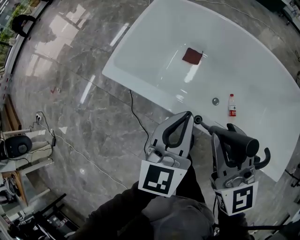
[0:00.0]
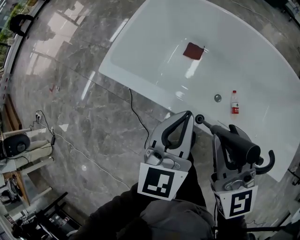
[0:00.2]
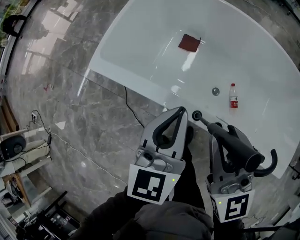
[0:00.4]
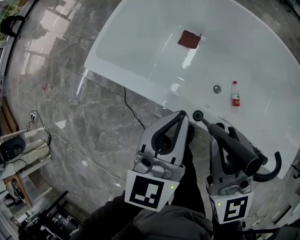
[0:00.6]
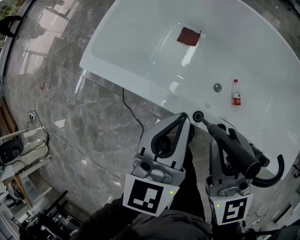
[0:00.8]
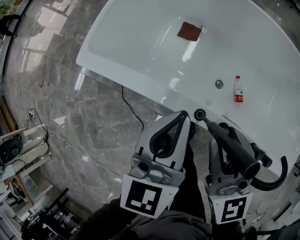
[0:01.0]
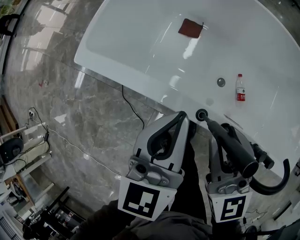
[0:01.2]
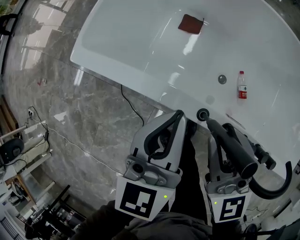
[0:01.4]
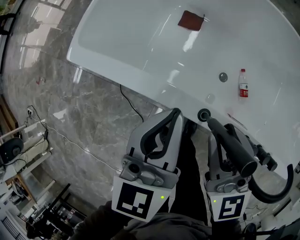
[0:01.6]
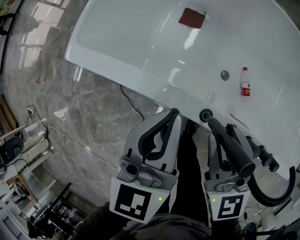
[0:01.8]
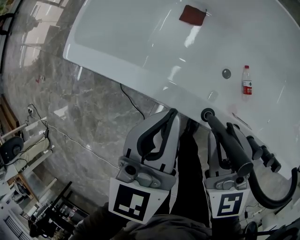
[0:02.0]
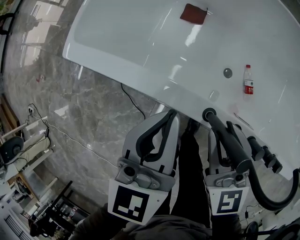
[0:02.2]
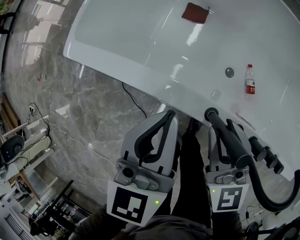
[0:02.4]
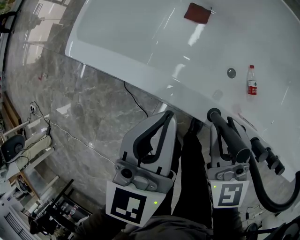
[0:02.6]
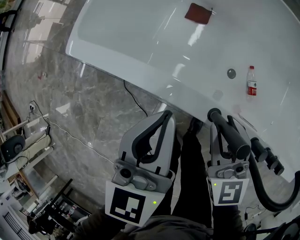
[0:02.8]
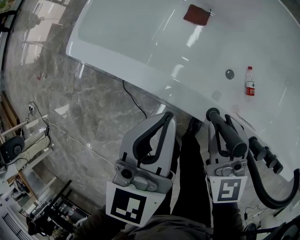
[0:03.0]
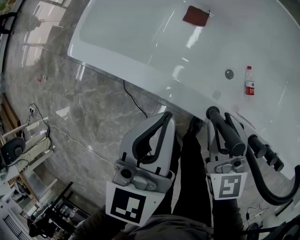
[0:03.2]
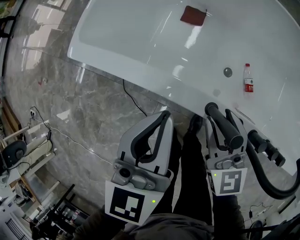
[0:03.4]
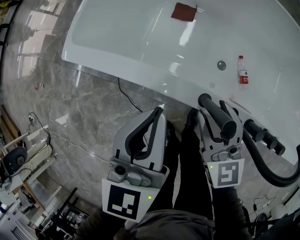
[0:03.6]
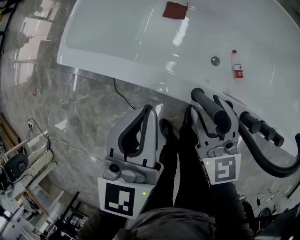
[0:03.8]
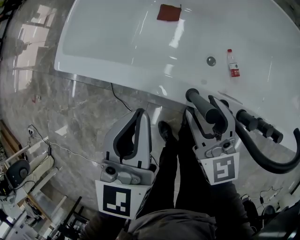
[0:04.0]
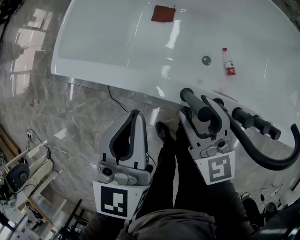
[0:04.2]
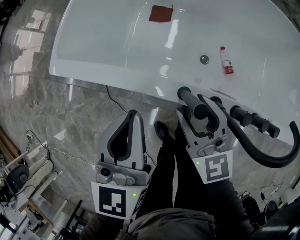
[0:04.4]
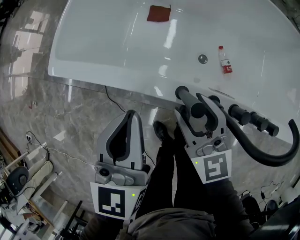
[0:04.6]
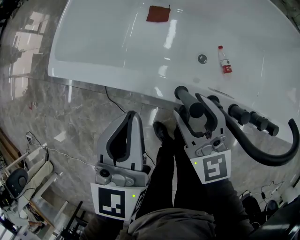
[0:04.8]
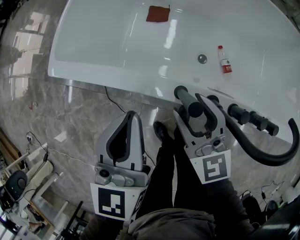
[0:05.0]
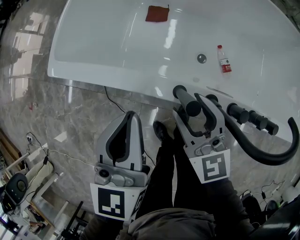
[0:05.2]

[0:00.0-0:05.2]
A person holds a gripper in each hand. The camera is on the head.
0:00.0 to 0:01.8: The grippers both shift downward by roughly 15 cm.
0:01.8 to 0:03.4: The right gripper travels downward by about 5 cm.
0:03.4 to 0:05.2: The grippers make only small movements.

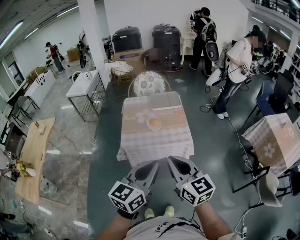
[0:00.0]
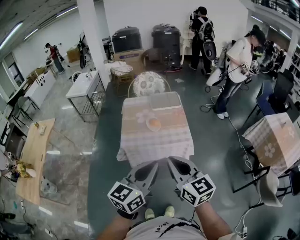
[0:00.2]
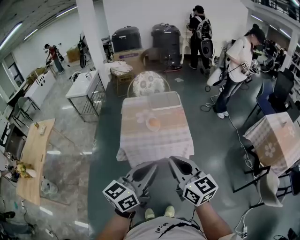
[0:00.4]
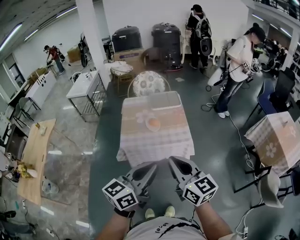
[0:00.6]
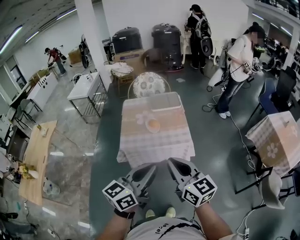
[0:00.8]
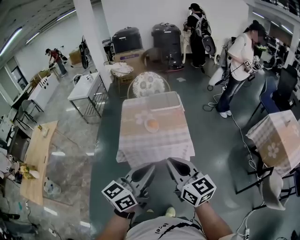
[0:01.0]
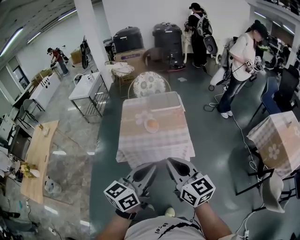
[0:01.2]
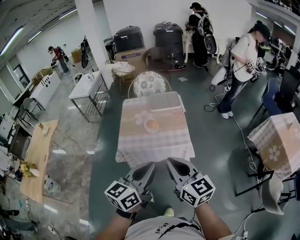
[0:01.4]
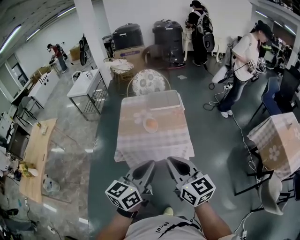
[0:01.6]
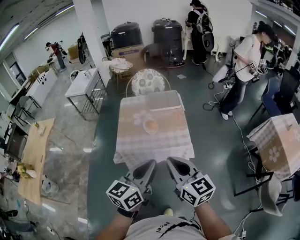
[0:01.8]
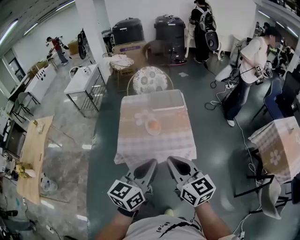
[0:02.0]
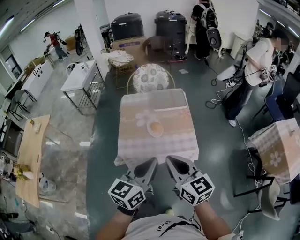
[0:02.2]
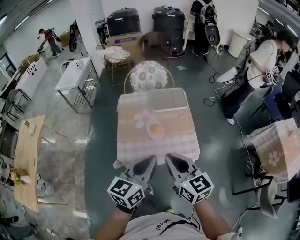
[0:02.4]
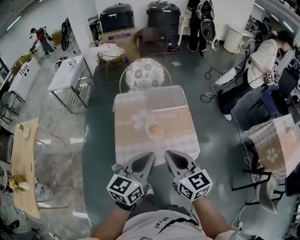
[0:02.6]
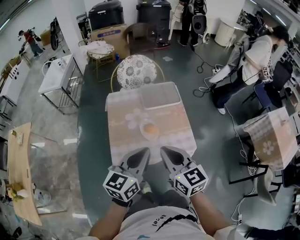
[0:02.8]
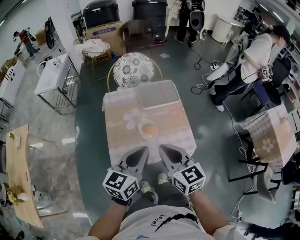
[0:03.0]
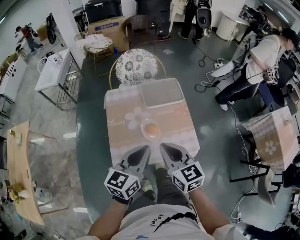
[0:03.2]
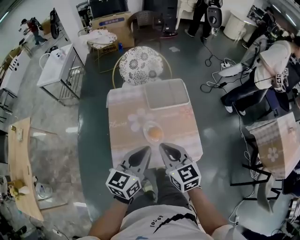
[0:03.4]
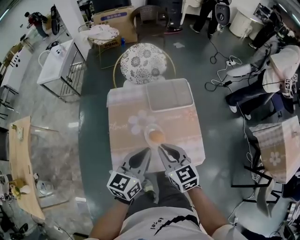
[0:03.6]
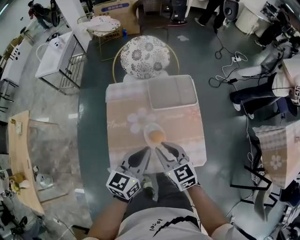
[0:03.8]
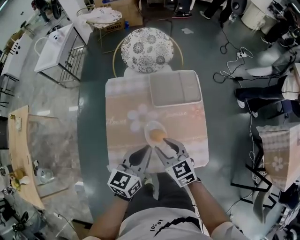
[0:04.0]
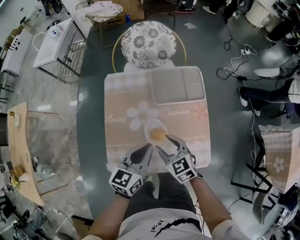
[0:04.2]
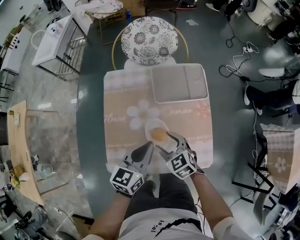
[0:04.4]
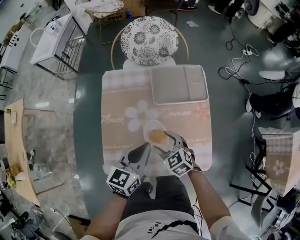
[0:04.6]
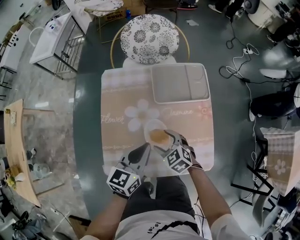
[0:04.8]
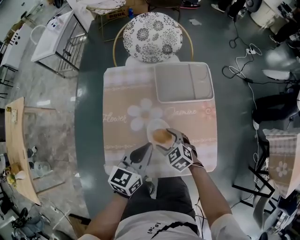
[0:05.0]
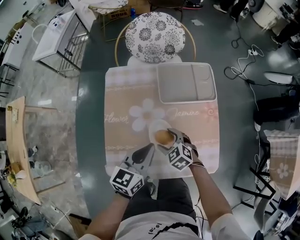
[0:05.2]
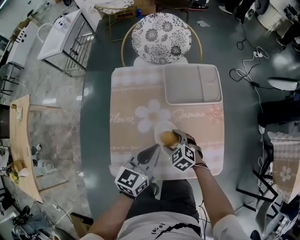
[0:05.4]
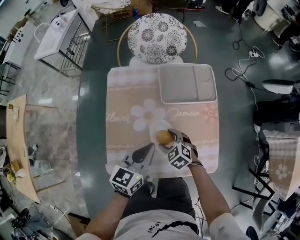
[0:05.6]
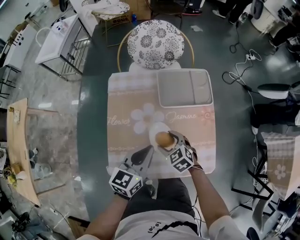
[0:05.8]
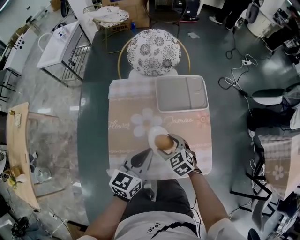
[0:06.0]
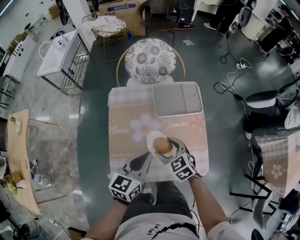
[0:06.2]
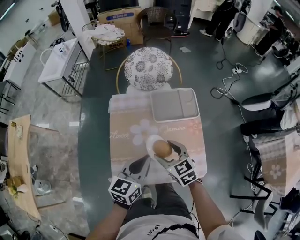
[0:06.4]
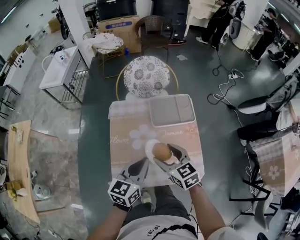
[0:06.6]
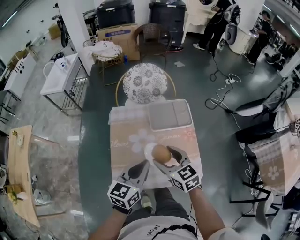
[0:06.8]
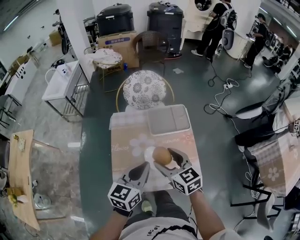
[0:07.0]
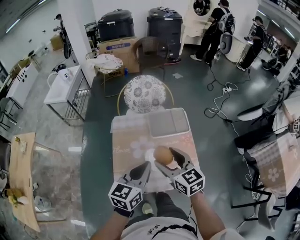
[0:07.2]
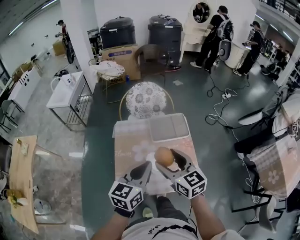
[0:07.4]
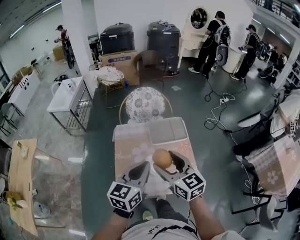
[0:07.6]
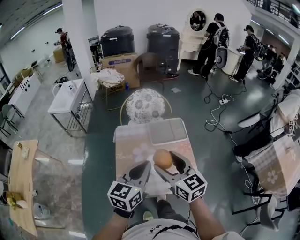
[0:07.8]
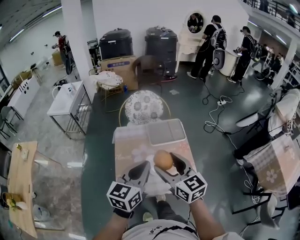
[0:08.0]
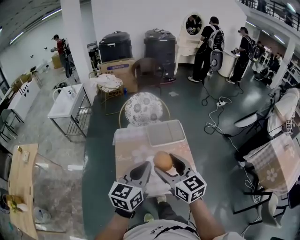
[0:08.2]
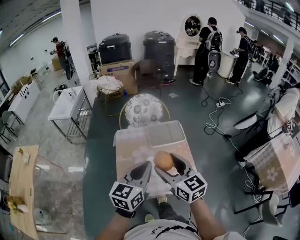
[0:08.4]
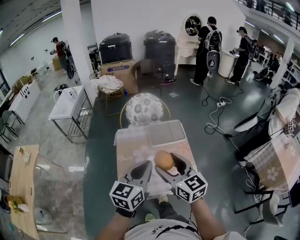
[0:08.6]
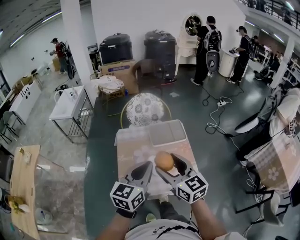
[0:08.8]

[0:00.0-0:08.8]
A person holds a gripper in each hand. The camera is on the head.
0:00.0 to 0:01.4: The left gripper moves approximately 5 cm. The right gripper shifts about 5 cm to the right.
0:01.4 to 0:03.0: Both grippers travel together forward and to the left, approximately 30 cm.
0:03.0 to 0:04.4: Both grippers move downward and forward, some 30 cm. The right gripper changes its angle by approximately 40 degrees, and opens up.
0:04.4 to 0:05.8: The right gripper heads downward, covering some 5 cm.
0:05.8 to 0:07.4: The left gripper is displaced upward by roughly 20 cm. Meanwhile the right gripper moves upward, some 35 cm, and points its fingers roughly 40 degrees further upward.
0:07.4 to 0:08.8: The left gripper ends up about 5 cm from where it was; the right gripper shifts some 5 cm backward.

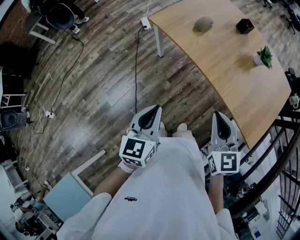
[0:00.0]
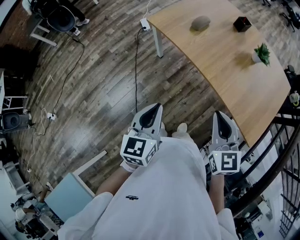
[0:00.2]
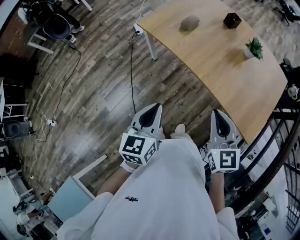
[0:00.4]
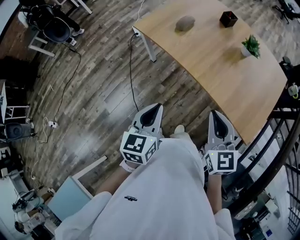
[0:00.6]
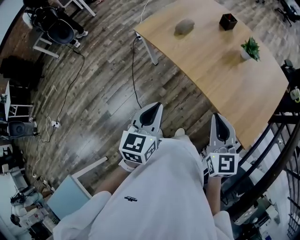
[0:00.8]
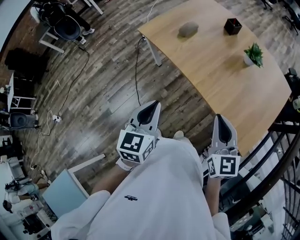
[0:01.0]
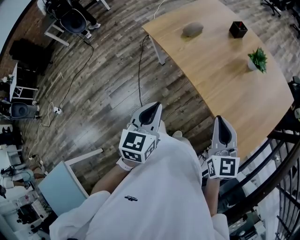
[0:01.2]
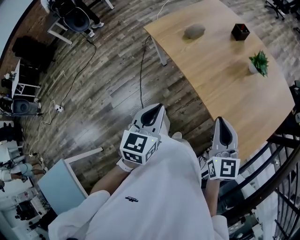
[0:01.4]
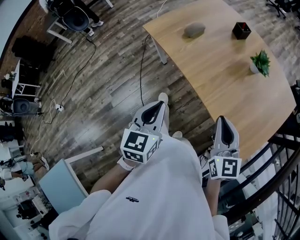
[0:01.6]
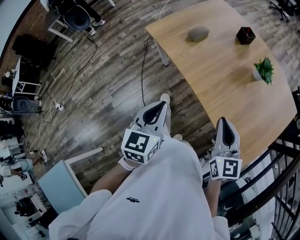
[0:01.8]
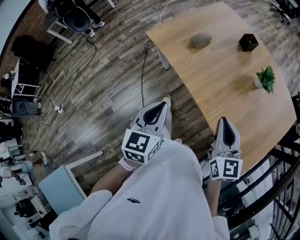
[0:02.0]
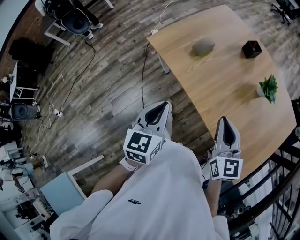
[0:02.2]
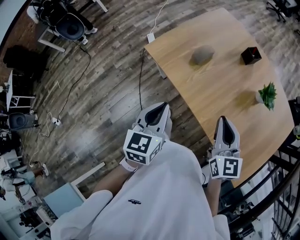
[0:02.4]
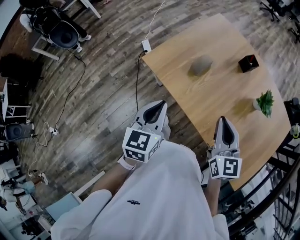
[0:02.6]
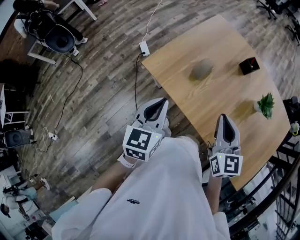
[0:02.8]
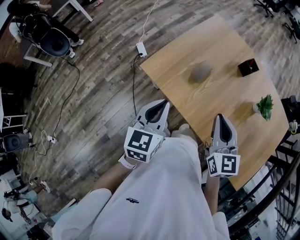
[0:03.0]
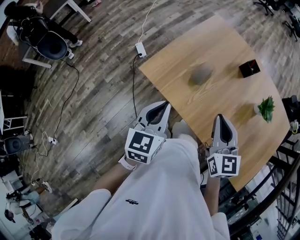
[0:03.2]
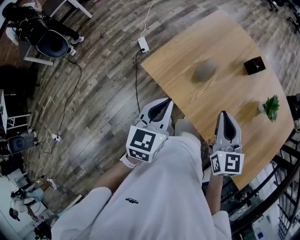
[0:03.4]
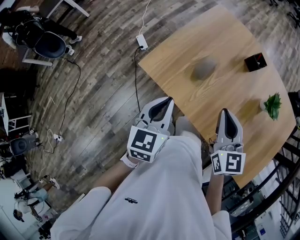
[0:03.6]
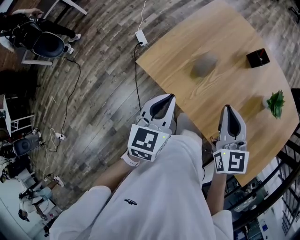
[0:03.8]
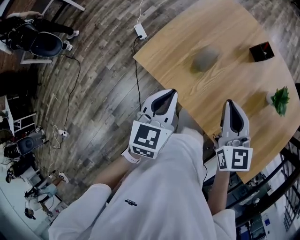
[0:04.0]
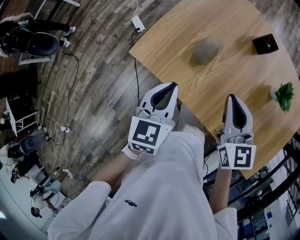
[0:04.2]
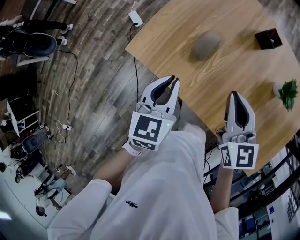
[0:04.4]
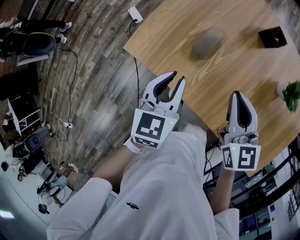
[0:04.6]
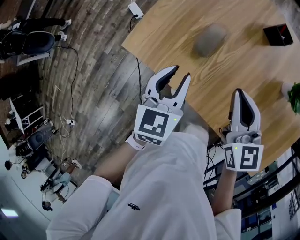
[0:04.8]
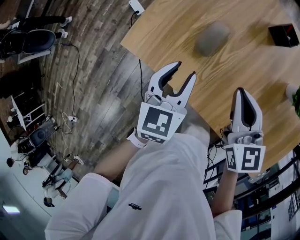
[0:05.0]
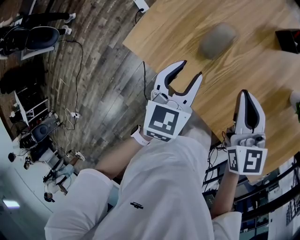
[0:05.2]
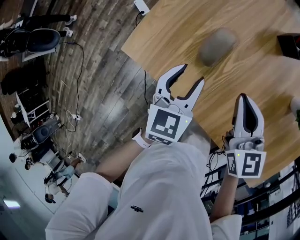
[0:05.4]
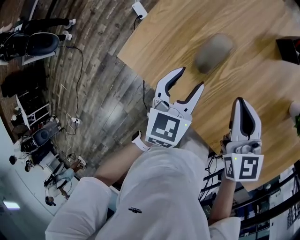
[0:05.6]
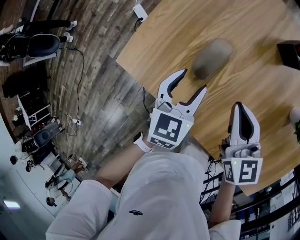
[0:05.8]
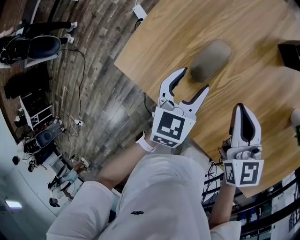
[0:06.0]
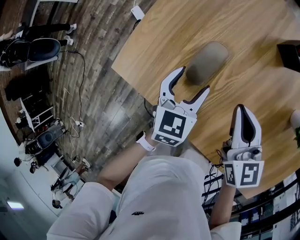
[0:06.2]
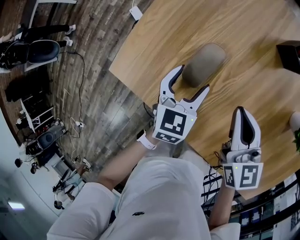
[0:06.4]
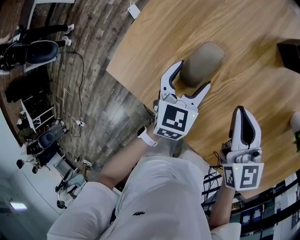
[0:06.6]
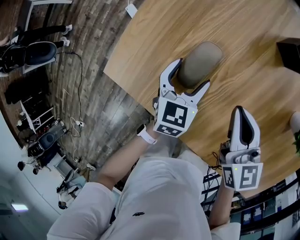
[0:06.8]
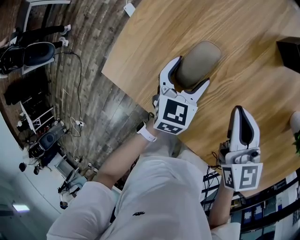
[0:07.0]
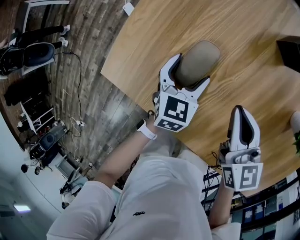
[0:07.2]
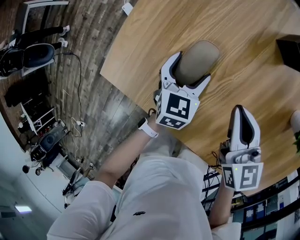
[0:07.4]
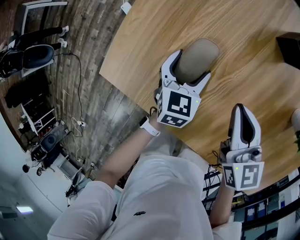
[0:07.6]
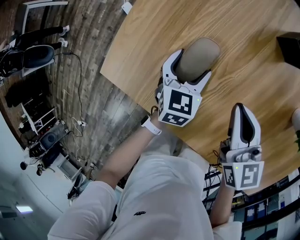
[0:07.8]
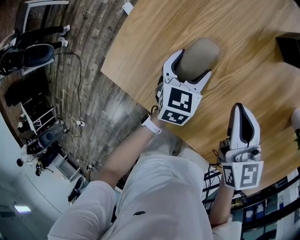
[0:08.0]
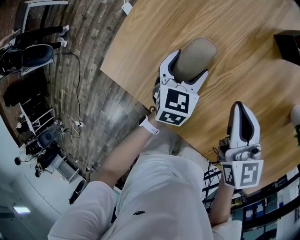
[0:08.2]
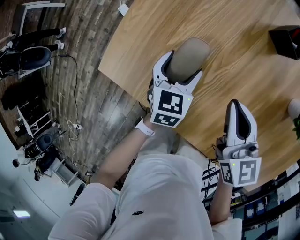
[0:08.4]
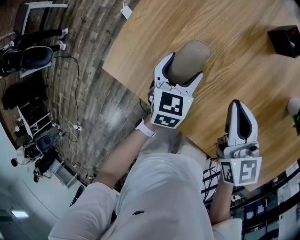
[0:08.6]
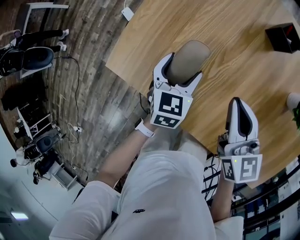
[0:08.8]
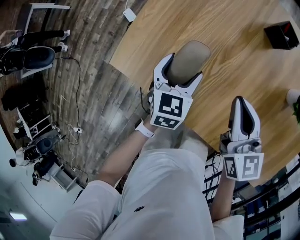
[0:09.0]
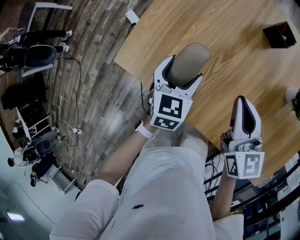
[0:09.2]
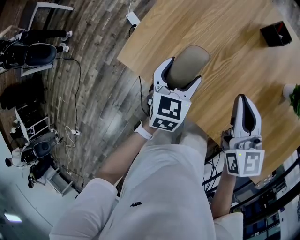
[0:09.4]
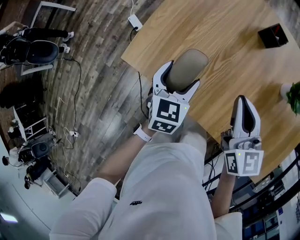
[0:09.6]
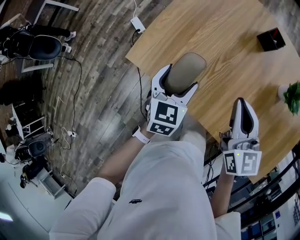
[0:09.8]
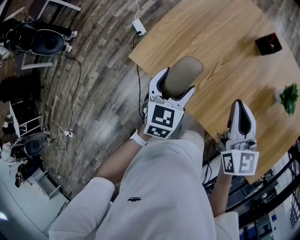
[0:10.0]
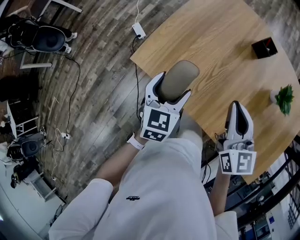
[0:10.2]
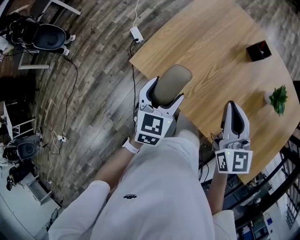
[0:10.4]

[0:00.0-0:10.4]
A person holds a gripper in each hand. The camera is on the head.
0:00.0 to 0:01.4: Both grippers move to the right, roughly 20 cm.
0:01.4 to 0:03.0: The left gripper heads forward, covering some 35 cm; the right gripper moves forward and to the left, approximately 35 cm.
0:03.0 to 0:04.4: The right gripper goes about 15 cm forward and downward, while the left gripper moves forward, downward and to the right, approximately 15 cm.
0:04.4 to 0:06.0: The right gripper goes approximately 15 cm downward and forward, while the left gripper goes roughly 20 cm downward, forward and to the right, and opens.
0:06.0 to 0:07.4: The left gripper travels downward and forward by about 10 cm. The right gripper moves approximately 5 cm.
0:07.4 to 0:09.0: Both grippers travel together upward, about 10 cm.
0:09.0 to 0:10.4: The left gripper goes roughly 20 cm upward, backward and to the left, while the right gripper is displaced upward and backward by roughly 15 cm.
